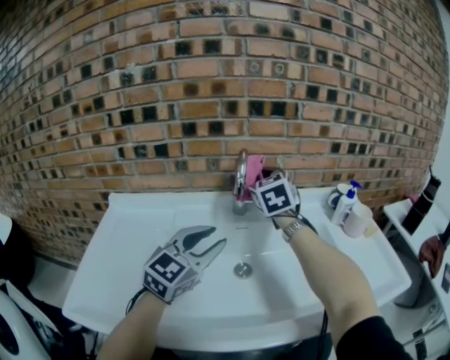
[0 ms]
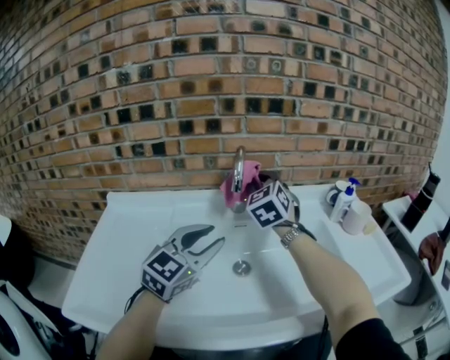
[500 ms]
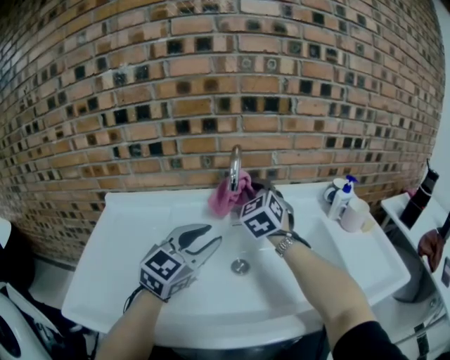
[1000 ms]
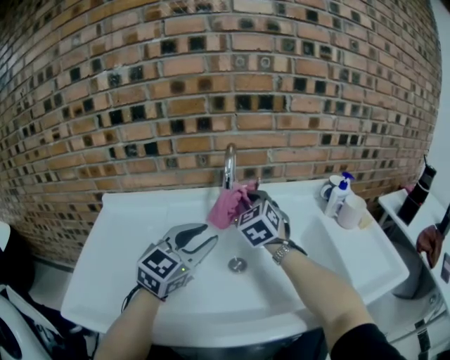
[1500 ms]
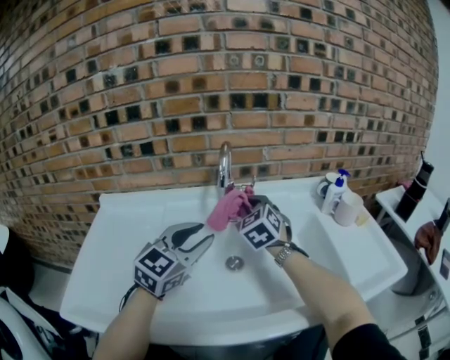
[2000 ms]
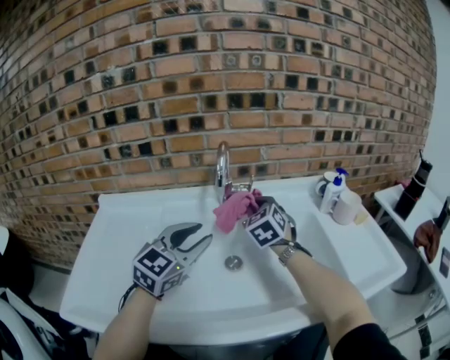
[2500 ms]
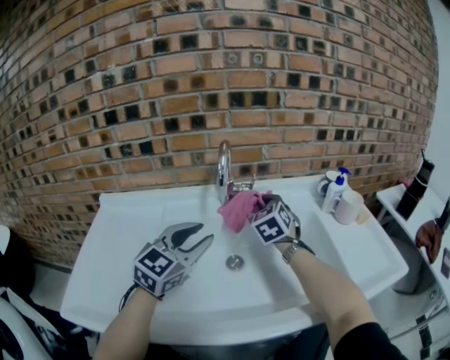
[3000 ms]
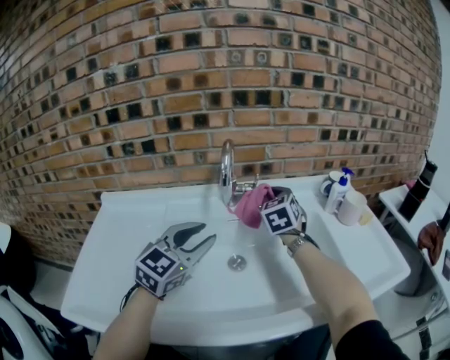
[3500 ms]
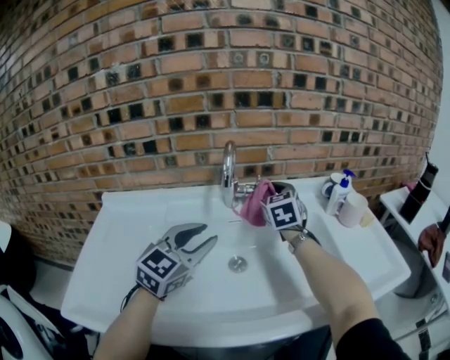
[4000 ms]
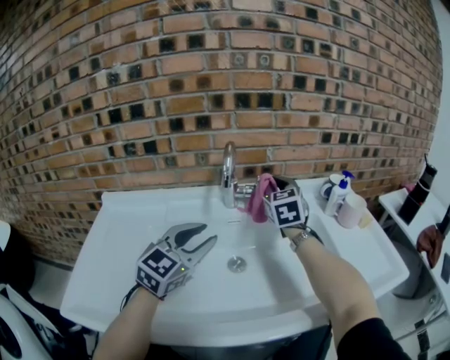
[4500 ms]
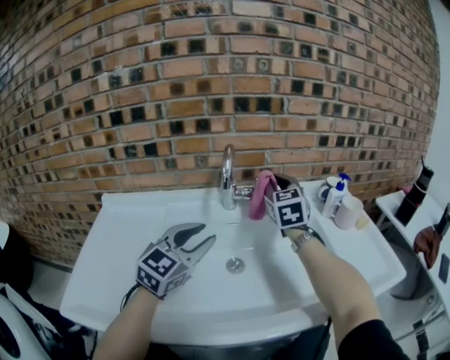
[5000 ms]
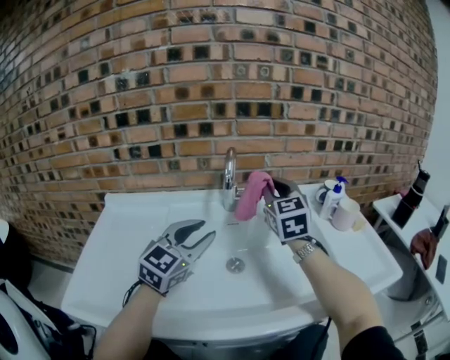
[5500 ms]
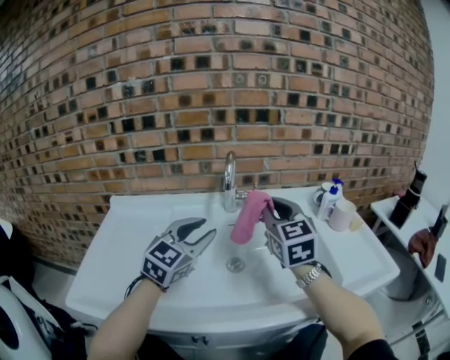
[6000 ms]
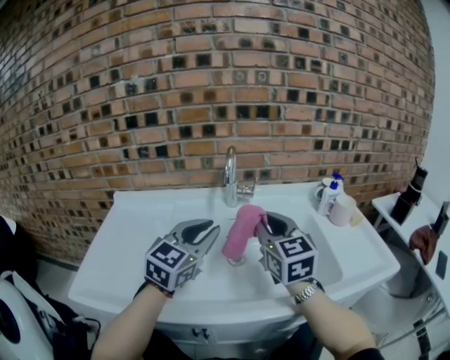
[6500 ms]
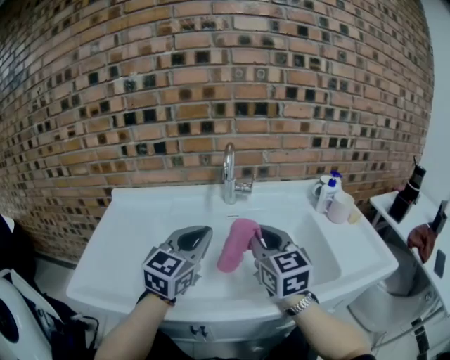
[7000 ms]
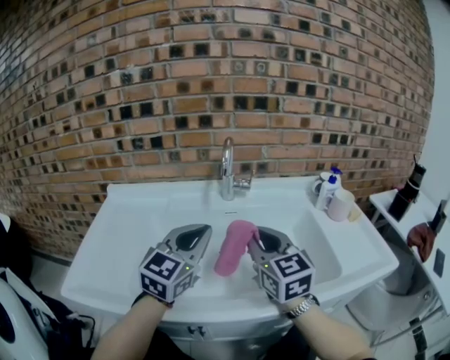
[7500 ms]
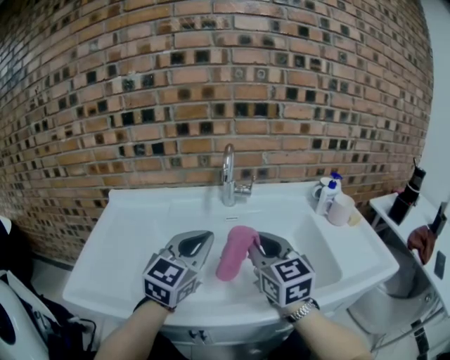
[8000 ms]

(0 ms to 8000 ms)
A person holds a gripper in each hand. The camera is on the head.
0 ms - 2000 ms: The right gripper moves downward, approximately 10 cm.
2000 ms - 4000 ms: The right gripper shifts some 10 cm forward and to the right.
4000 ms - 6000 ms: The right gripper heads backward and upward, covering roughly 20 cm.
6000 ms - 8000 ms: The left gripper travels backward by roughly 5 cm, and closes. Meanwhile the right gripper is displaced backward and downward by approximately 10 cm.

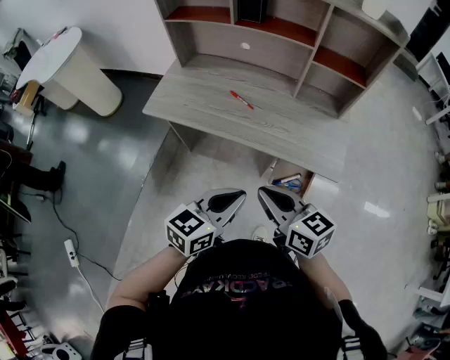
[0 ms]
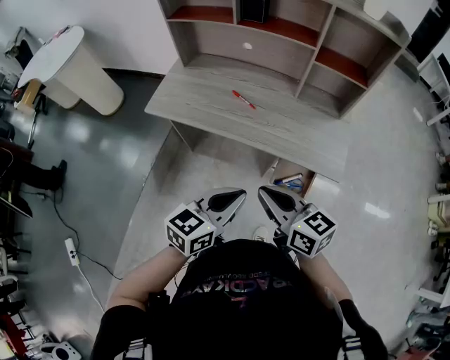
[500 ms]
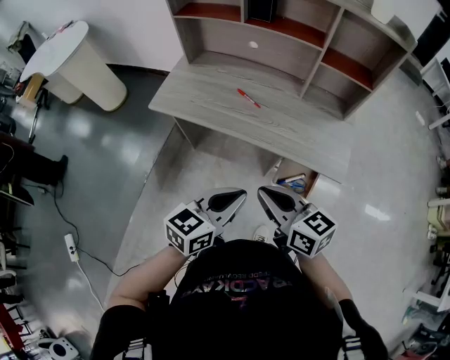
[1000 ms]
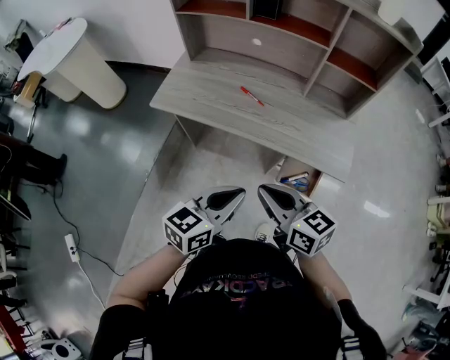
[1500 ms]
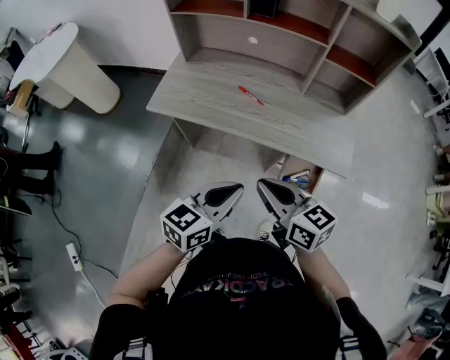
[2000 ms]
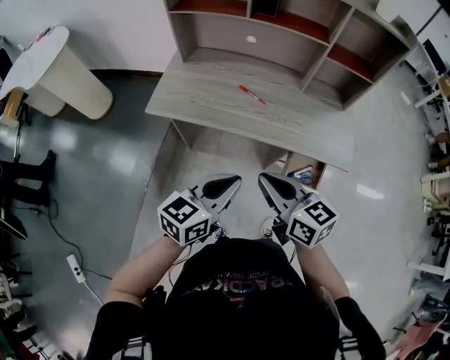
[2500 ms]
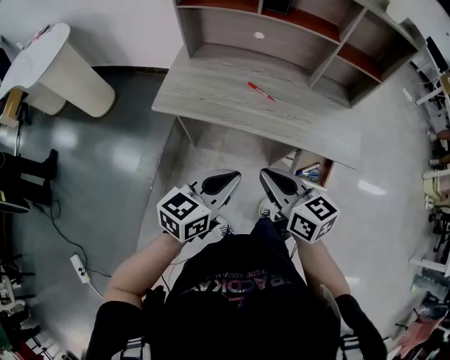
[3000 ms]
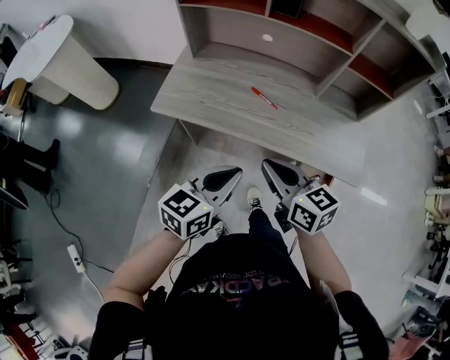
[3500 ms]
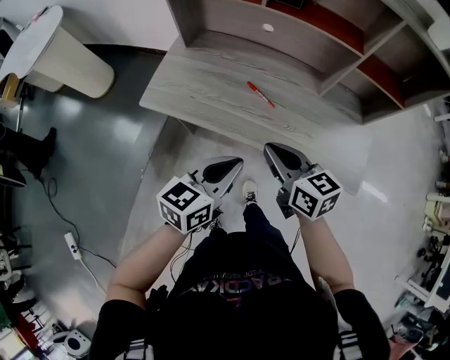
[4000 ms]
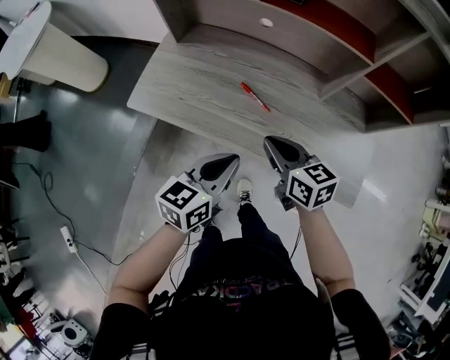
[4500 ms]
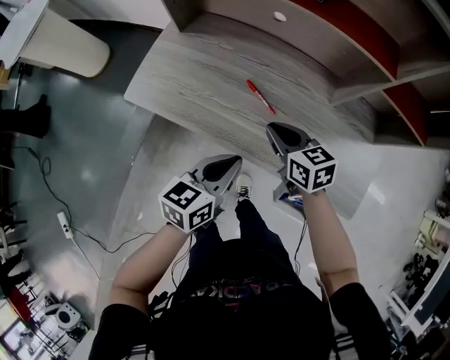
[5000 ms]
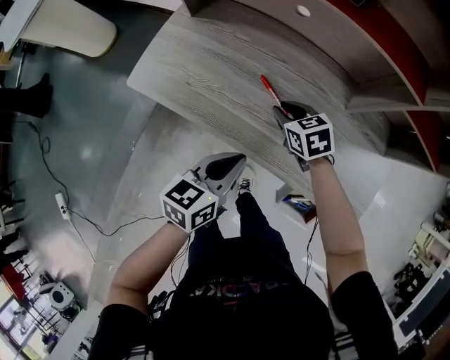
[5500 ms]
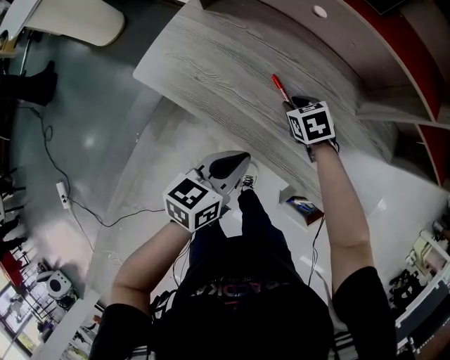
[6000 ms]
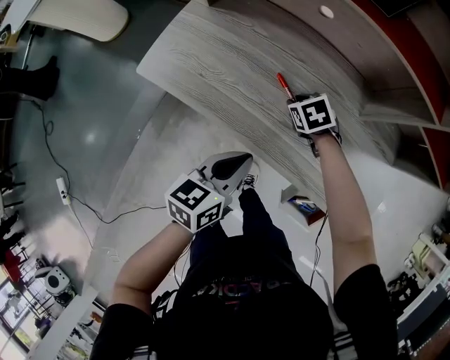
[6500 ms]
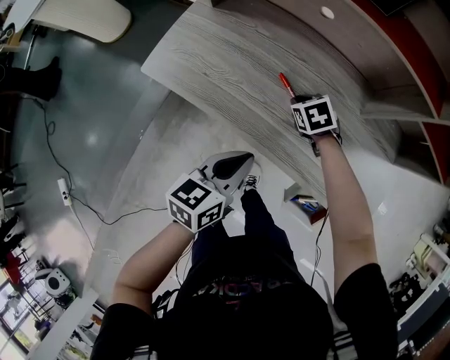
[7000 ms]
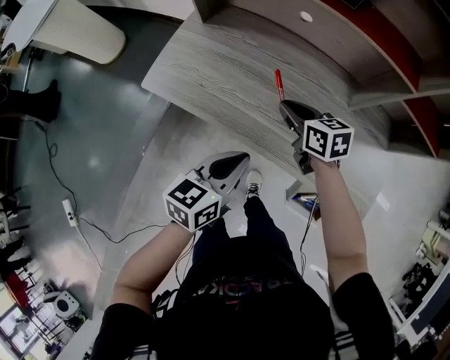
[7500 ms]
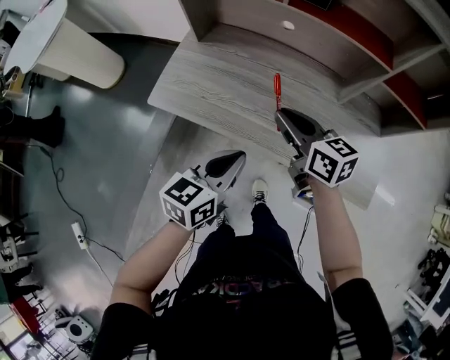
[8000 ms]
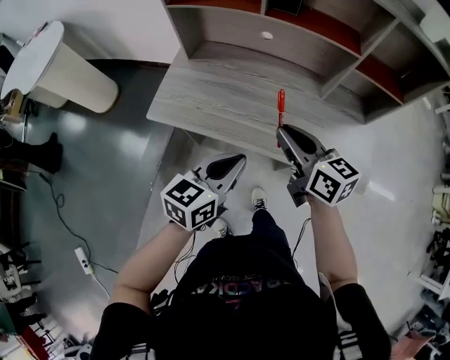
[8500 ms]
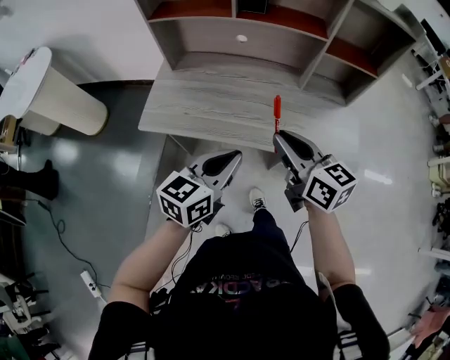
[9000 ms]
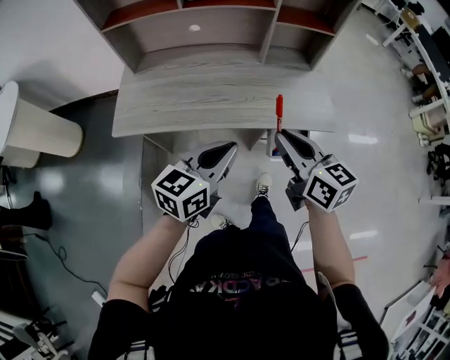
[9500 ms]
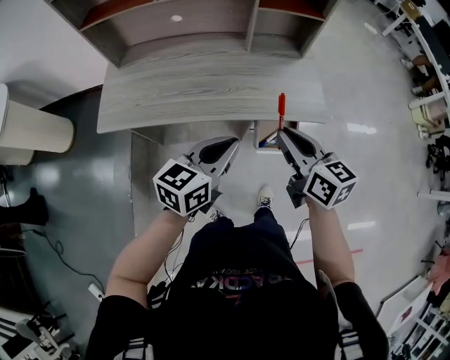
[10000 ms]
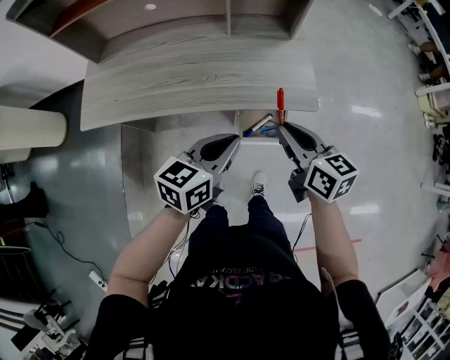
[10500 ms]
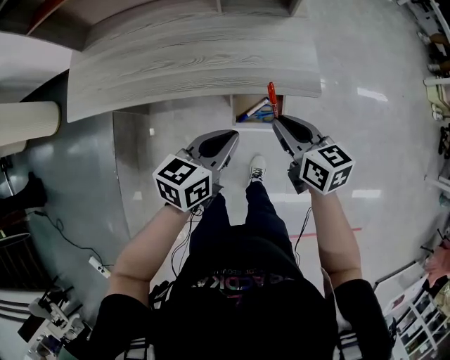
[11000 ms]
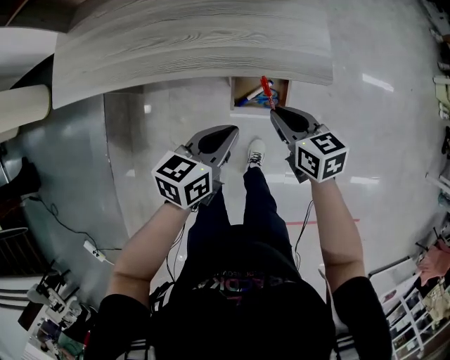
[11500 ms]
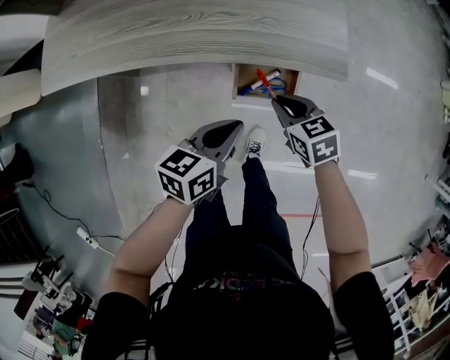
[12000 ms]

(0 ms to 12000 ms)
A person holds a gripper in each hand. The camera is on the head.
0 ms - 2000 ms: The grippers both shift to the left by approximately 5 cm.
2000 ms - 4000 ms: The two grippers go roughly 15 cm forward.
4000 ms - 6000 ms: The left gripper moves downward and forward, some 10 cm, and rotates some 20 degrees. Meanwhile the right gripper travels downward and forward by about 30 cm, tilts its fingers roughly 40 degrees downward, and opens its fingers.
6000 ms - 8000 ms: The left gripper goes some 10 cm upward. The right gripper goes some 20 cm upward, and angles its fingers upward, by about 40 degrees.
8000 ms - 10000 ms: The right gripper ends up roughly 30 cm from where it was, and turns by about 30 degrees. The left gripper moves approximately 15 cm, and rotates some 30 degrees.
10000 ms - 12000 ms: The left gripper goes about 20 cm downward and to the right, and changes its angle by approximately 20 degrees; the right gripper travels downward by about 25 cm, and points its fingers roughly 30 degrees further downward.

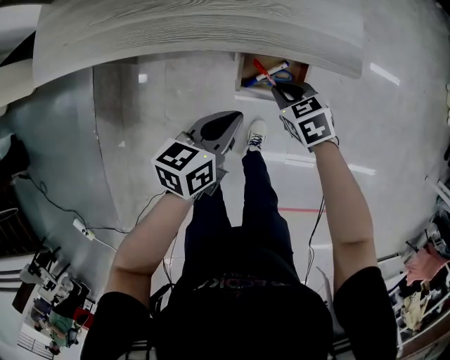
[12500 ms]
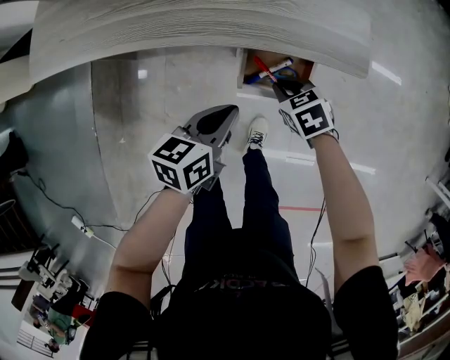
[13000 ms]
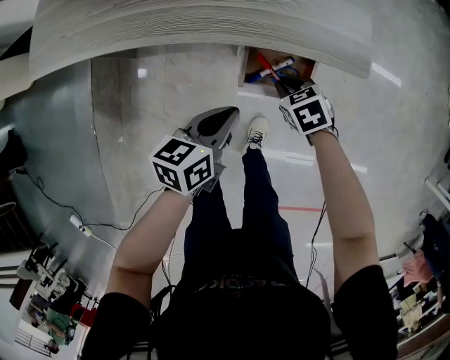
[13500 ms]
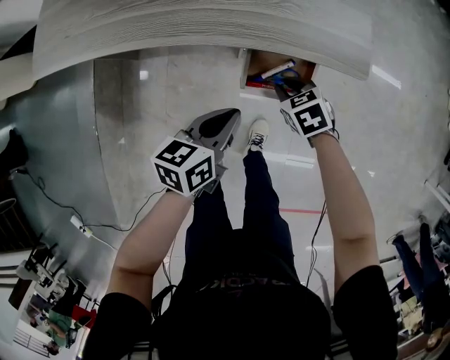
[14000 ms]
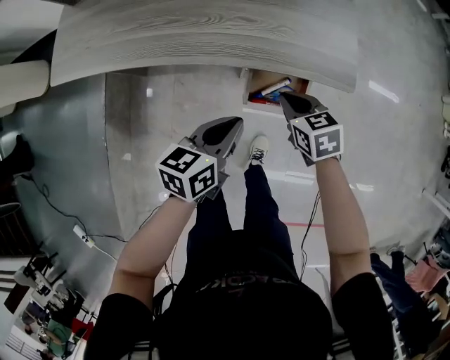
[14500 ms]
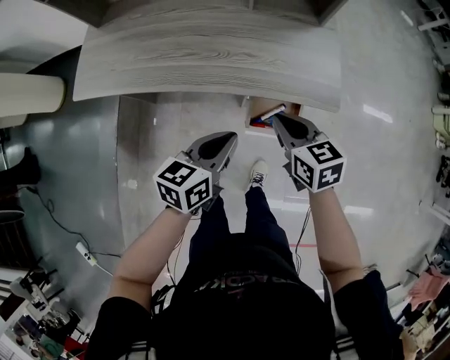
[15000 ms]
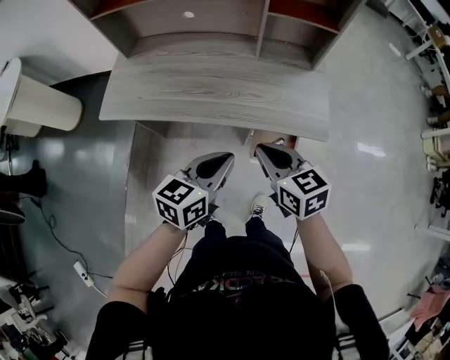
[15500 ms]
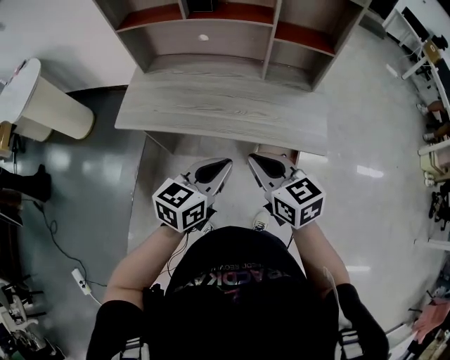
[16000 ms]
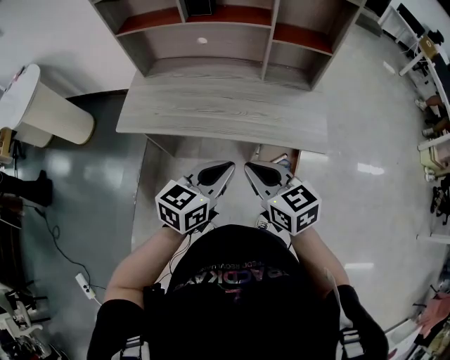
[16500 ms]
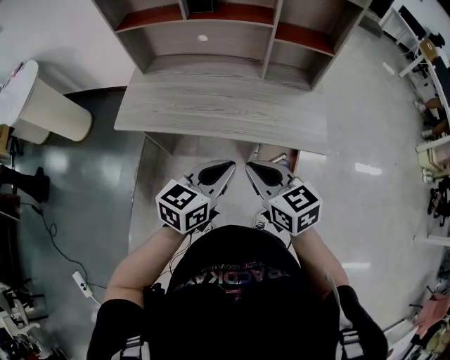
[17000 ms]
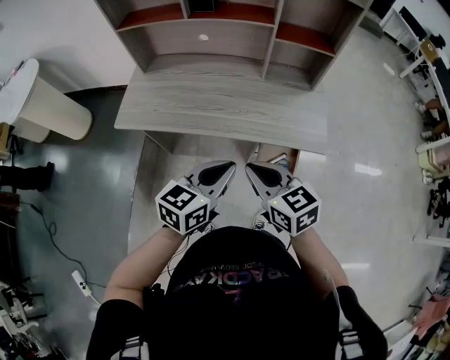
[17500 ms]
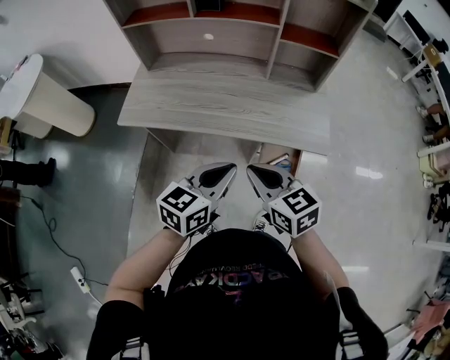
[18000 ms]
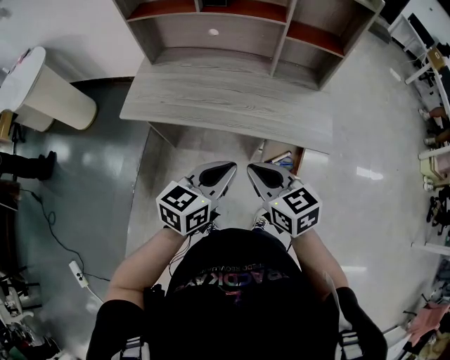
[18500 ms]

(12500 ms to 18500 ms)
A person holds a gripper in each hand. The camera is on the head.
12500 ms - 14500 ms: The right gripper moves upward, roughly 5 cm.
14500 ms - 16500 ms: The right gripper is displaced upward and to the left by roughly 30 cm, and swivels some 30 degrees. The left gripper heads upward and to the left, covering approximately 20 cm, and swivels about 20 degrees.
16500 ms - 18500 ms: The grippers move only a little.

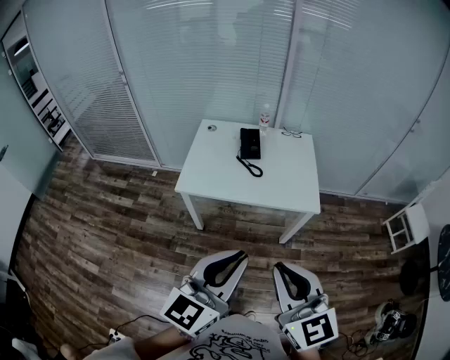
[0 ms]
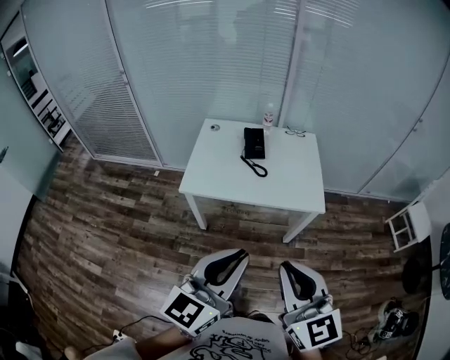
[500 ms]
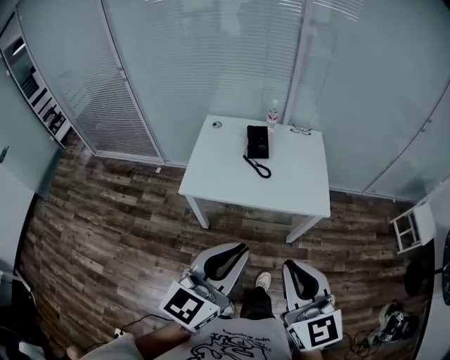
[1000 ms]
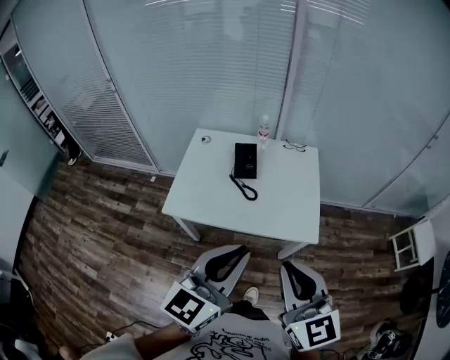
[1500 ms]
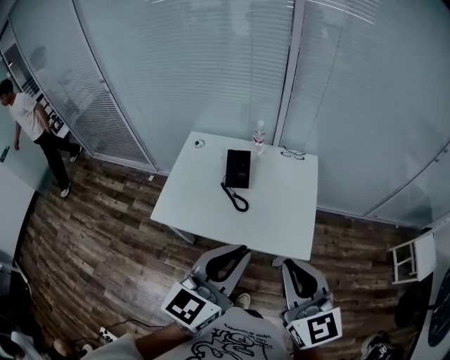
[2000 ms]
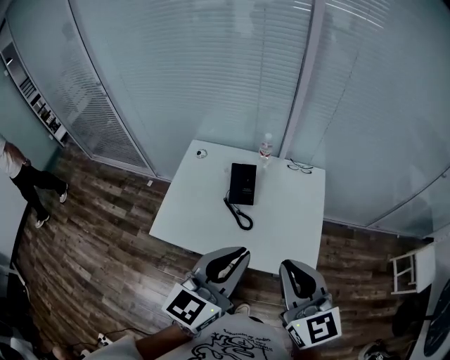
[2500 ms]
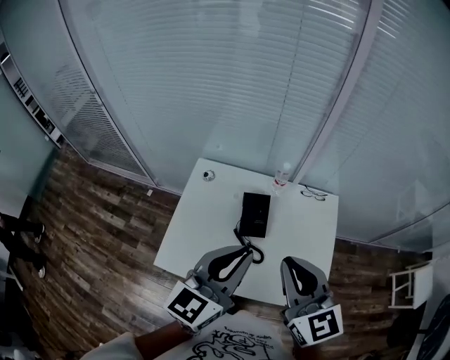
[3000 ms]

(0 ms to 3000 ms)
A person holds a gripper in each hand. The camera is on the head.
0 ms - 1500 ms: The grippers both shift forward by about 20 cm.
1500 ms - 3000 ms: Both grippers travel together forward, about 35 cm.
